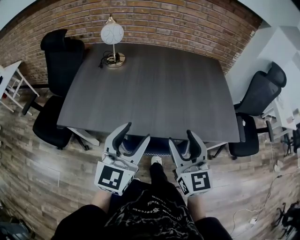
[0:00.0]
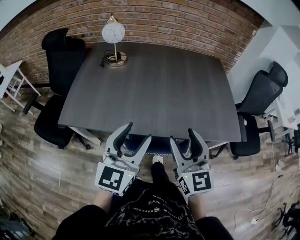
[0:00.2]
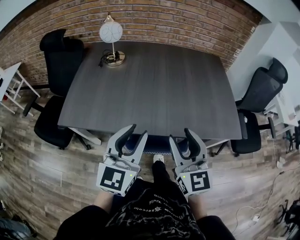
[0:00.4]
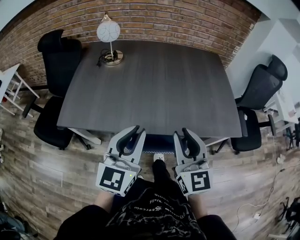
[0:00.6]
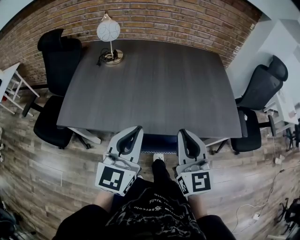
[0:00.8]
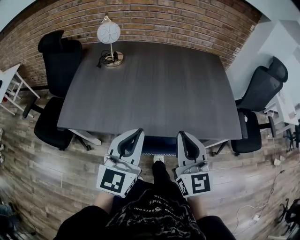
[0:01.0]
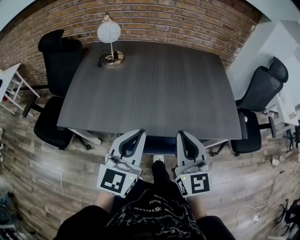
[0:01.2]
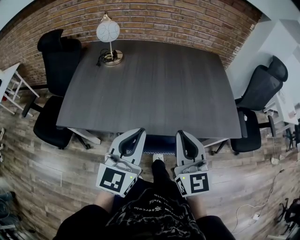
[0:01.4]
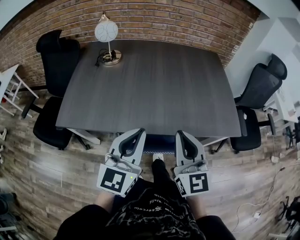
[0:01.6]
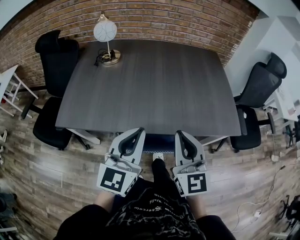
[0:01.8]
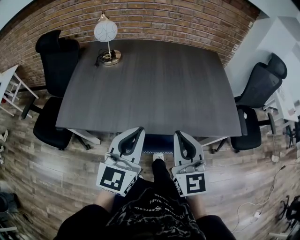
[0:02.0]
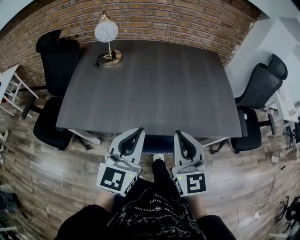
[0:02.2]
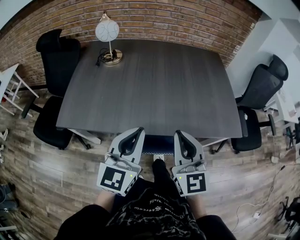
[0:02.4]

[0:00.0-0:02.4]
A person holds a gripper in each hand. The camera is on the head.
0:00.0 to 0:01.2: The left gripper closes its fingers. The right gripper closes up.
0:01.2 to 0:02.4: The two grippers keep their place.

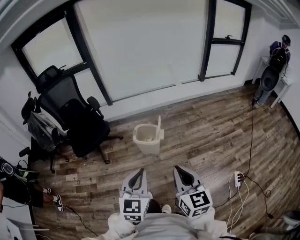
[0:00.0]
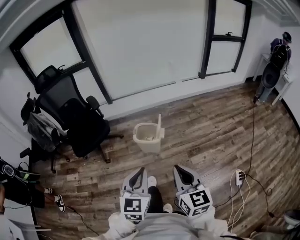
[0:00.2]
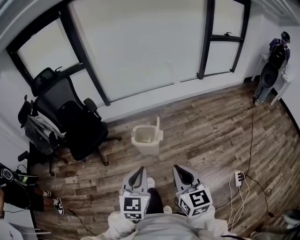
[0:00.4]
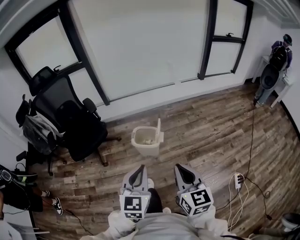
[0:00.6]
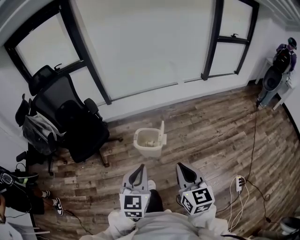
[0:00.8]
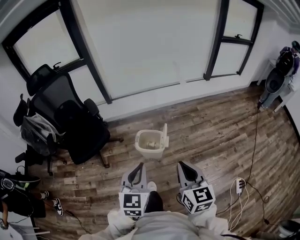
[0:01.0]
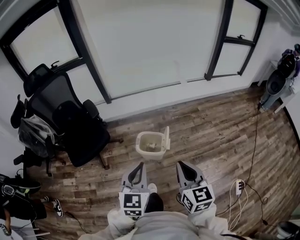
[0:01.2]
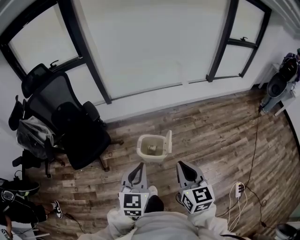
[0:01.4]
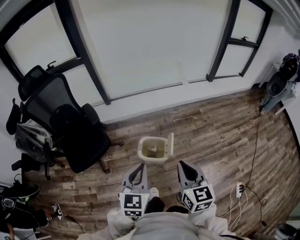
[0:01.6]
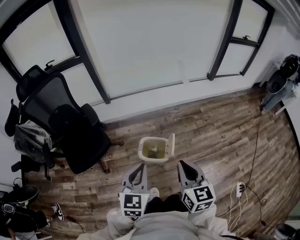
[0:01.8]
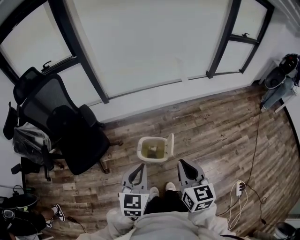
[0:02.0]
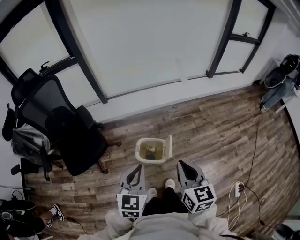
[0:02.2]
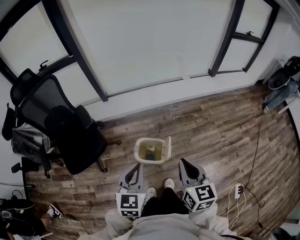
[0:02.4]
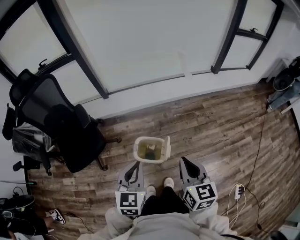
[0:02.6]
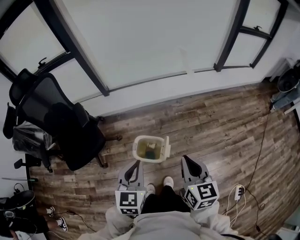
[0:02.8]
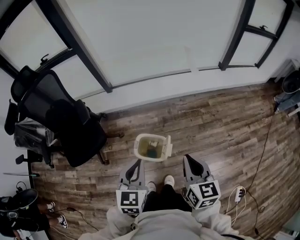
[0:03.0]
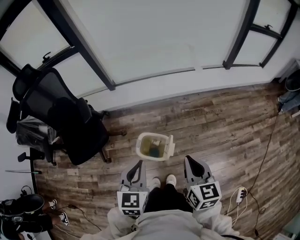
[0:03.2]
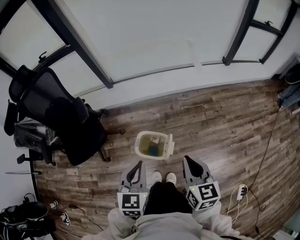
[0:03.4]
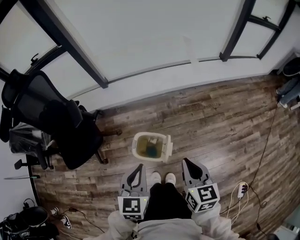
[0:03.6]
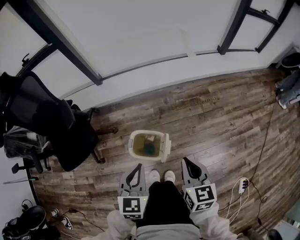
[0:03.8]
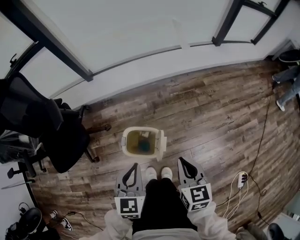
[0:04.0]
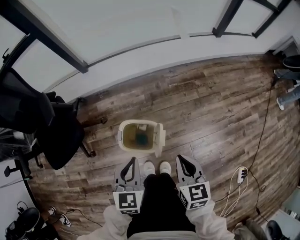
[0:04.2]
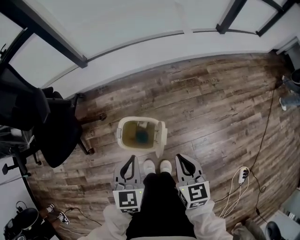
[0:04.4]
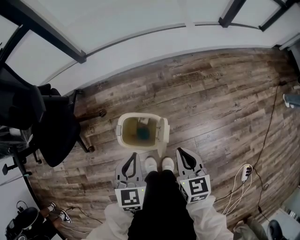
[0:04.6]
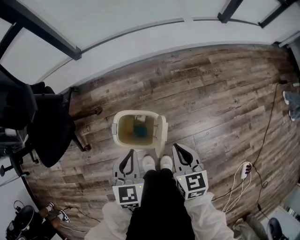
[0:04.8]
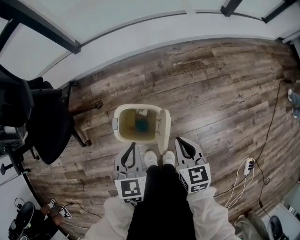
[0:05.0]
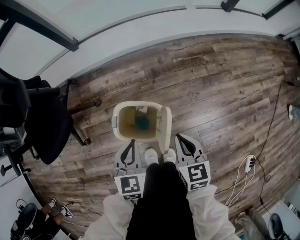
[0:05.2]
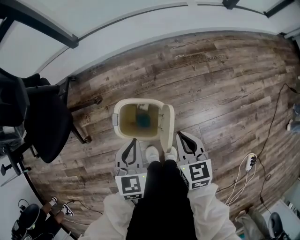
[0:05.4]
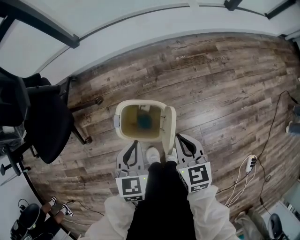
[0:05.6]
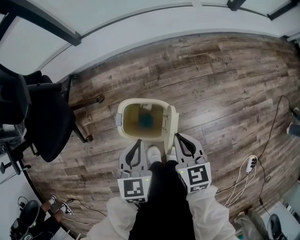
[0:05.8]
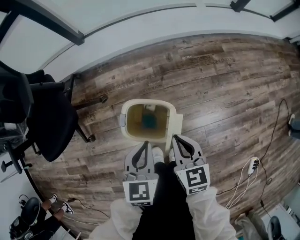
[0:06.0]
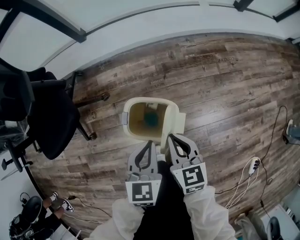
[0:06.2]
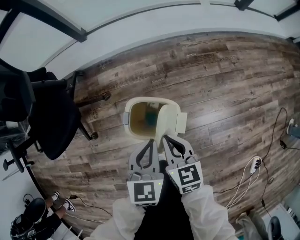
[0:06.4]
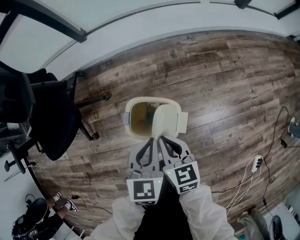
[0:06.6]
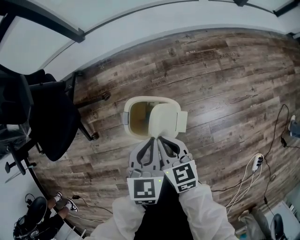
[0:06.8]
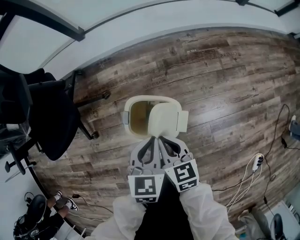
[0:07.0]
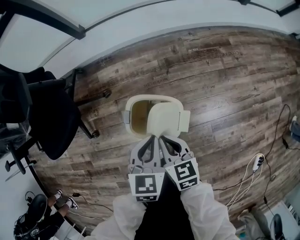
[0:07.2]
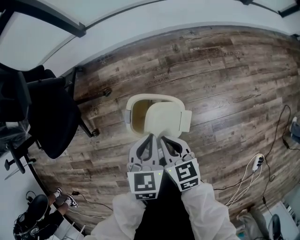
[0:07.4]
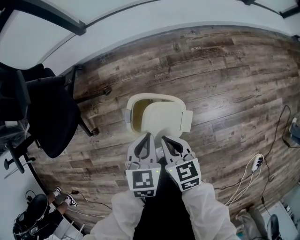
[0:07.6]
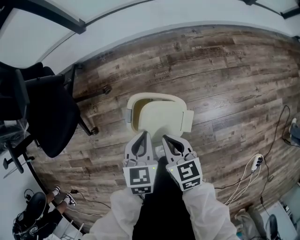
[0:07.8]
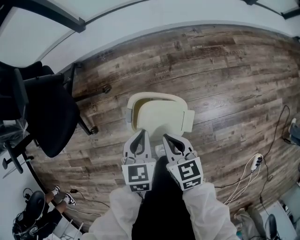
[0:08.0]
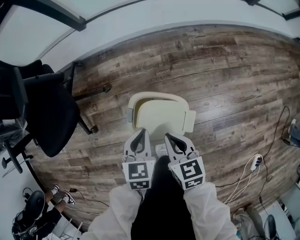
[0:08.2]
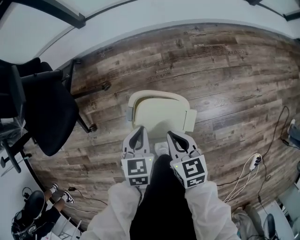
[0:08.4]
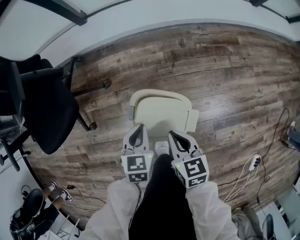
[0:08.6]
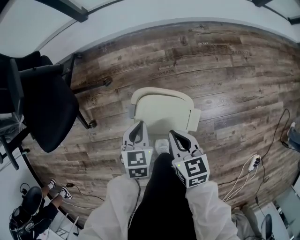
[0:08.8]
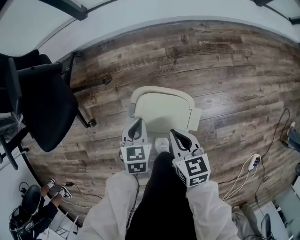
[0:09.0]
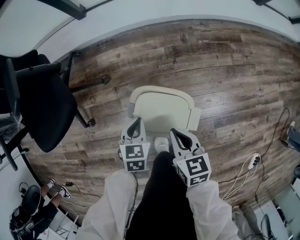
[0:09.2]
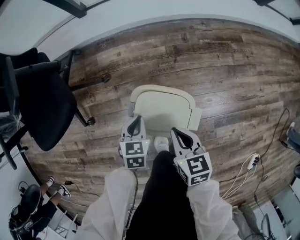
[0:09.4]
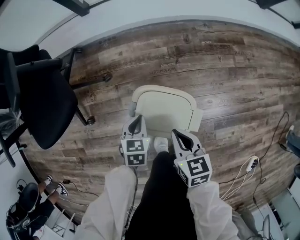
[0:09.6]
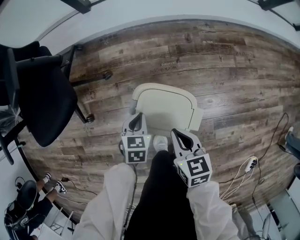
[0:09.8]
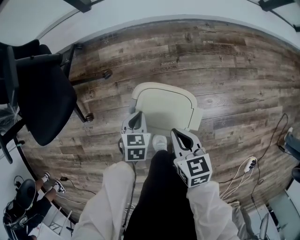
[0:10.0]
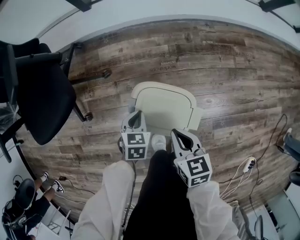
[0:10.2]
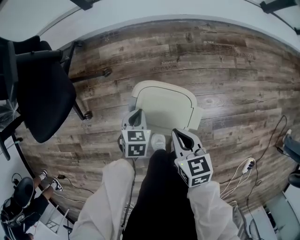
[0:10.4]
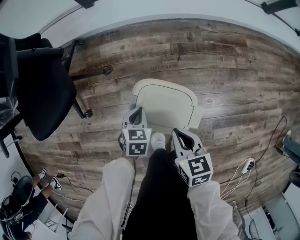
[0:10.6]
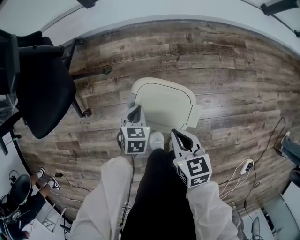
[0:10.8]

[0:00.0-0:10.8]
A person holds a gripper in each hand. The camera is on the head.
0:00.0 to 0:01.6: Both grippers travel together forward, some 30 cm.
0:01.6 to 0:03.0: The grippers both shift forward and to the right by roughly 20 cm.
0:03.0 to 0:04.6: Both grippers travel together downward, some 30 cm.
0:04.6 to 0:06.2: The right gripper heads to the left and downward, covering roughly 15 cm. Meanwhile the left gripper shifts some 5 cm downward.
0:06.2 to 0:07.8: The left gripper goes roughly 10 cm downward; the right gripper is displaced downward and to the left by roughly 10 cm.
0:07.8 to 0:09.2: The left gripper shifts approximately 15 cm downward and to the left.
0:09.2 to 0:10.8: The grippers make only small movements.

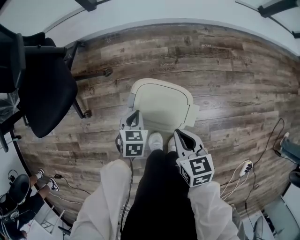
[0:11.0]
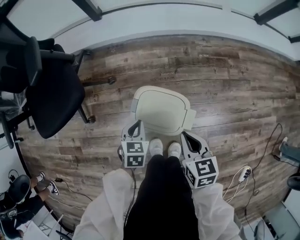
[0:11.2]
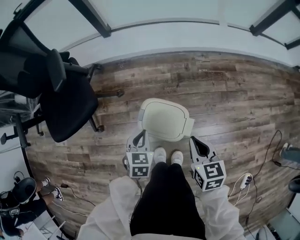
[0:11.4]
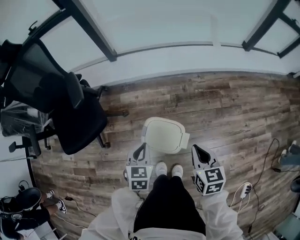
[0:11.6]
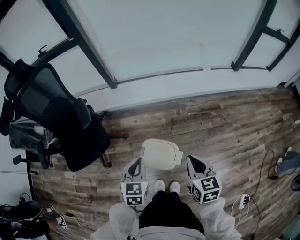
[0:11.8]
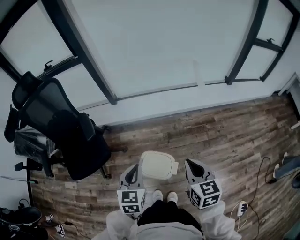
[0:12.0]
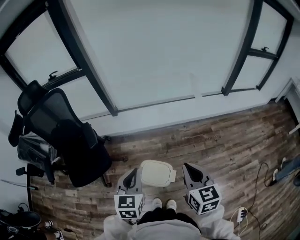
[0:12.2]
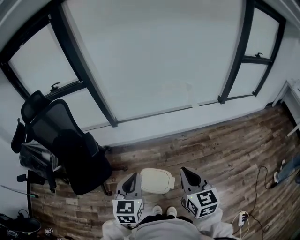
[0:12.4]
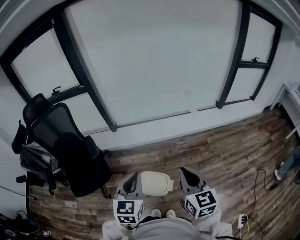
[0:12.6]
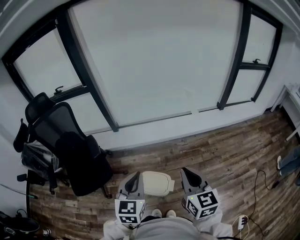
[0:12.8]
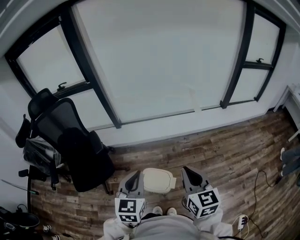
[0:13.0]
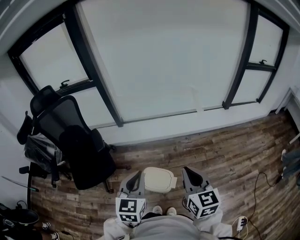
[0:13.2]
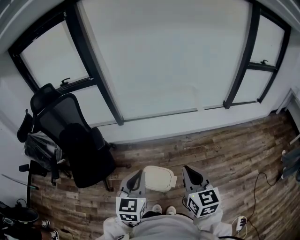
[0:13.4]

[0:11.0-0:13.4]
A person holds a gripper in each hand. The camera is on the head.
0:11.0 to 0:12.2: The grippers both shift upward by about 60 cm. The right gripper rotates some 30 degrees, while the left gripper tilts its fingers roughly 30 degrees upward.
0:12.2 to 0:13.4: The two grippers go about 10 cm upward and backward.

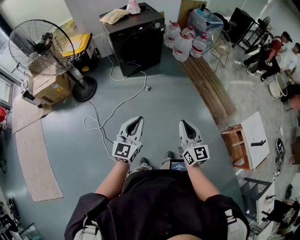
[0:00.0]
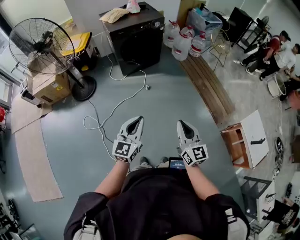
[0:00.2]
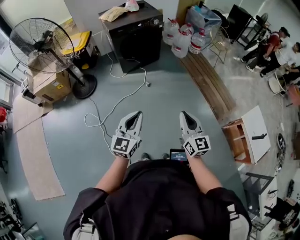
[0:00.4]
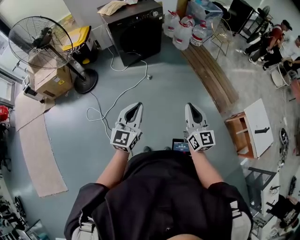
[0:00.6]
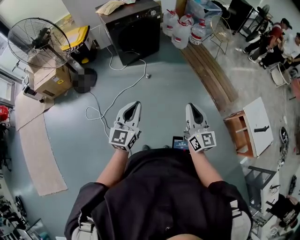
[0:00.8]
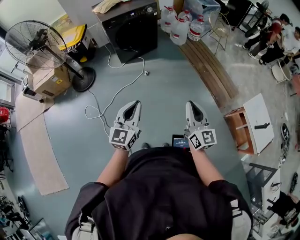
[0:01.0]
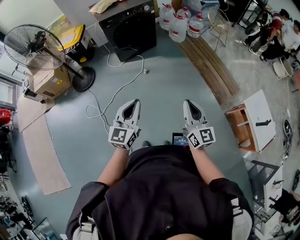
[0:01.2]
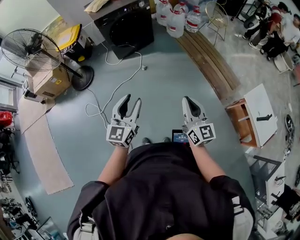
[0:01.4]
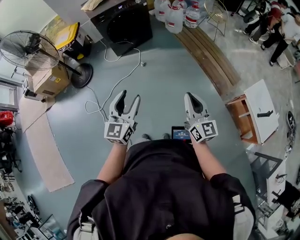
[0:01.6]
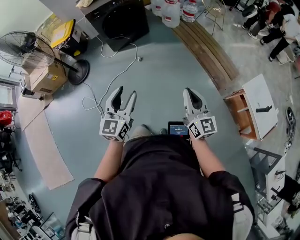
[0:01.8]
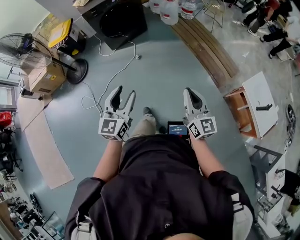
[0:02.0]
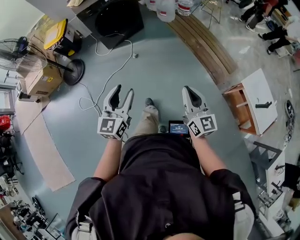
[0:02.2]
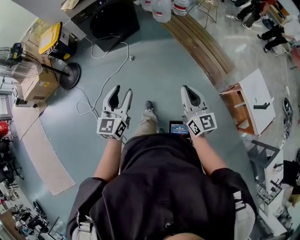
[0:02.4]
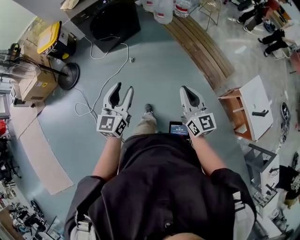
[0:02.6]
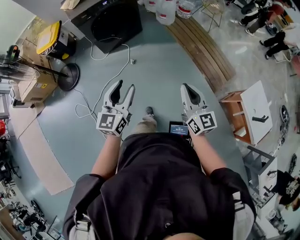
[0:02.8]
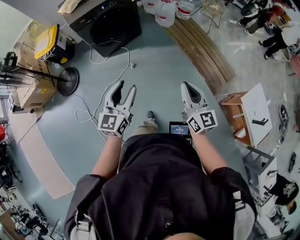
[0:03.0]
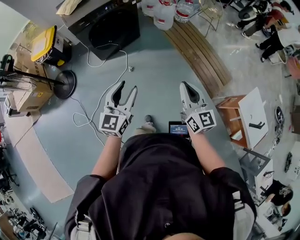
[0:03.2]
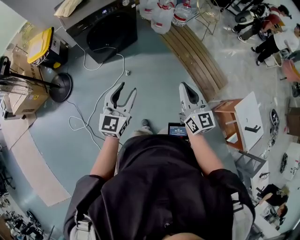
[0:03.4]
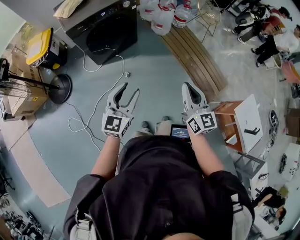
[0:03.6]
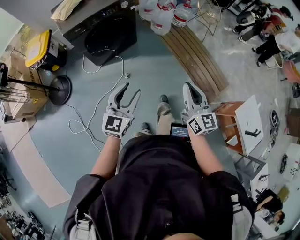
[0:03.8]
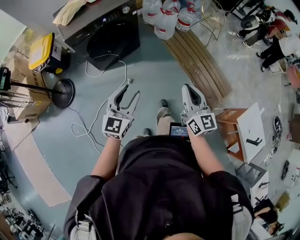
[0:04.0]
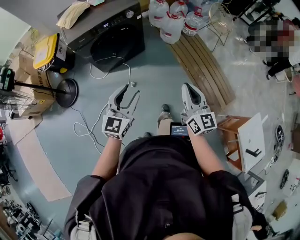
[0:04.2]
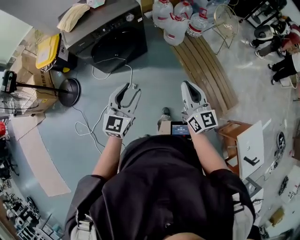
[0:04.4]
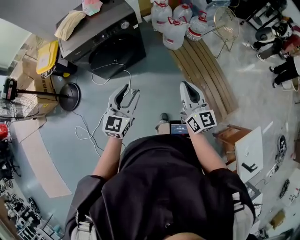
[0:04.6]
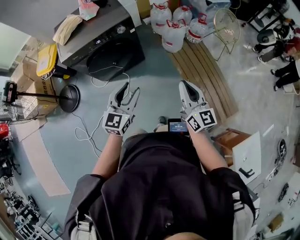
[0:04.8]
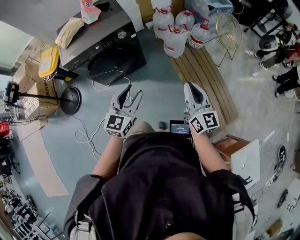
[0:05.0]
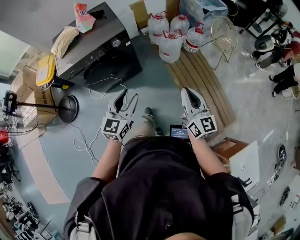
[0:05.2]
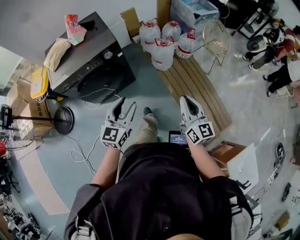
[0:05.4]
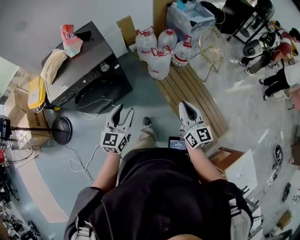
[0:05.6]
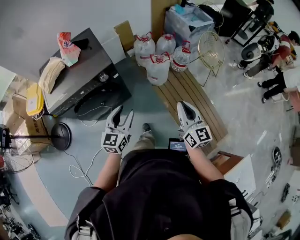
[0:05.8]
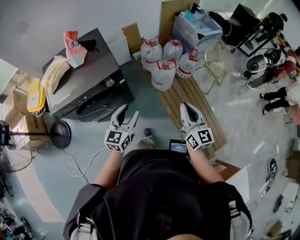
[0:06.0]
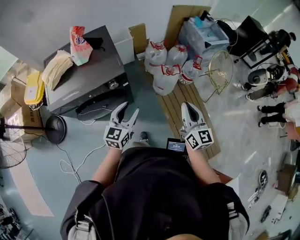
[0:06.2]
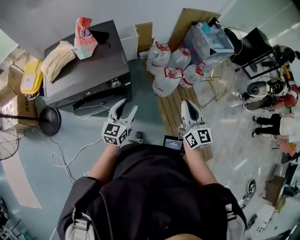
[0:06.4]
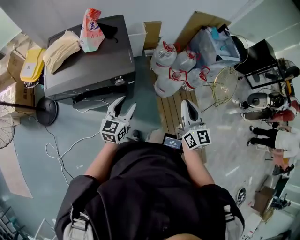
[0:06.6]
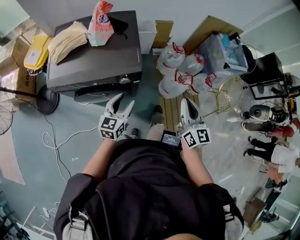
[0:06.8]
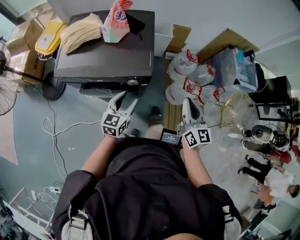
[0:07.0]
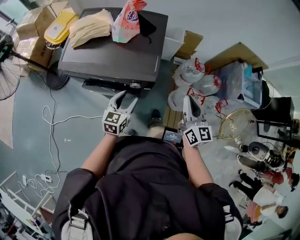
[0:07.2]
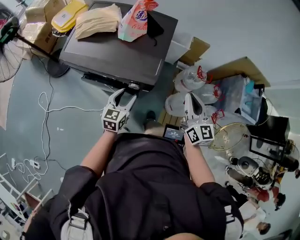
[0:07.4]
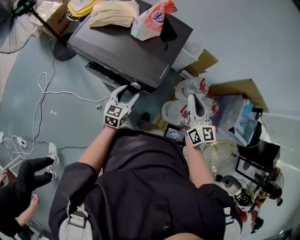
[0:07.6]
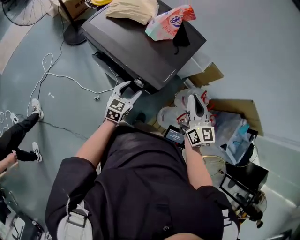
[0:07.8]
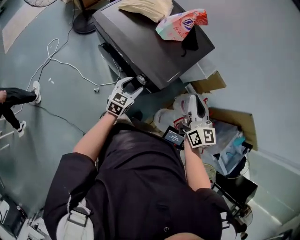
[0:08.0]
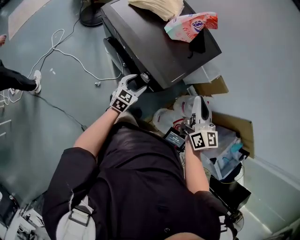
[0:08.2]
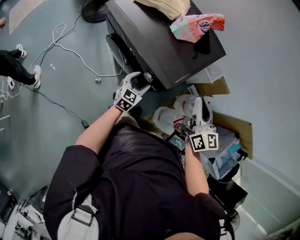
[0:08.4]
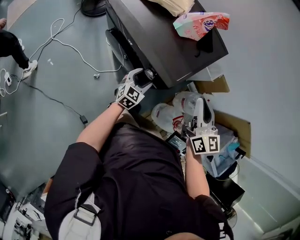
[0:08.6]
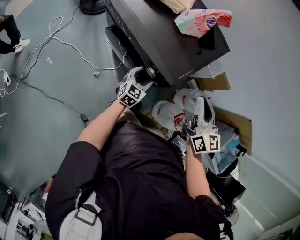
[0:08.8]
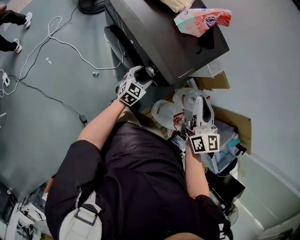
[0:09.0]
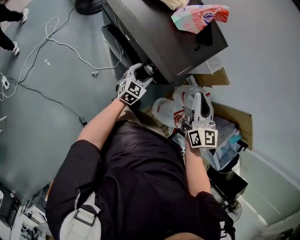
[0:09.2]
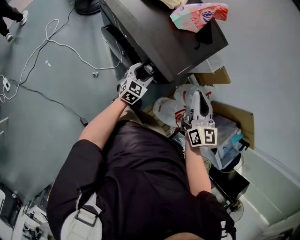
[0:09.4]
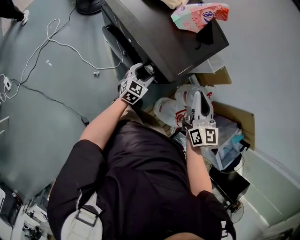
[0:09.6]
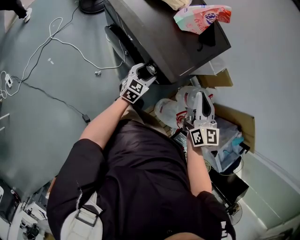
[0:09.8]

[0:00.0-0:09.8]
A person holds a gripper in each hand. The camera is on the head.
0:00.0 to 0:01.4: The grippers both shift to the right by roughly 10 cm. The left gripper opens its fingers.
0:01.4 to 0:02.8: The two grippers go roughly 20 cm forward.
0:02.8 to 0:04.2: The grippers both shift forward by some 25 cm.
0:04.2 to 0:05.6: Both grippers move forward and to the right, some 35 cm.
0:05.6 to 0:07.0: The right gripper goes roughly 35 cm forward, and changes its angle by roughly 30 degrees, while the left gripper travels forward and to the left by some 30 cm, and changes its angle by some 30 degrees.
0:07.0 to 0:08.4: The right gripper moves approximately 20 cm, and turns by roughly 40 degrees; the left gripper heads downward, covering roughly 10 cm, and changes its angle by some 30 degrees.
0:08.4 to 0:09.8: The grippers make only small movements.
